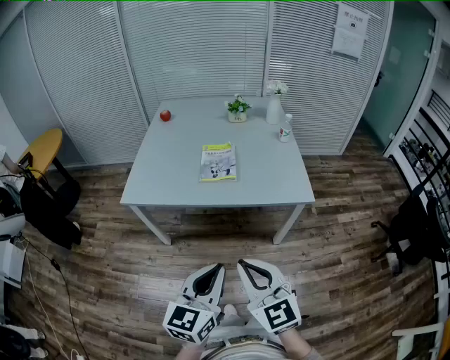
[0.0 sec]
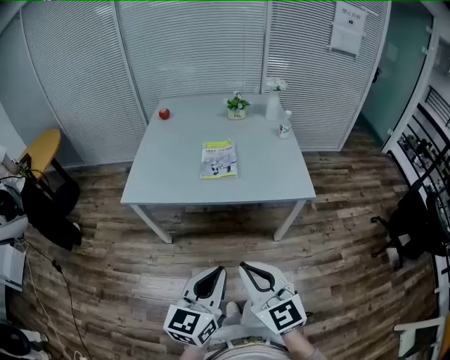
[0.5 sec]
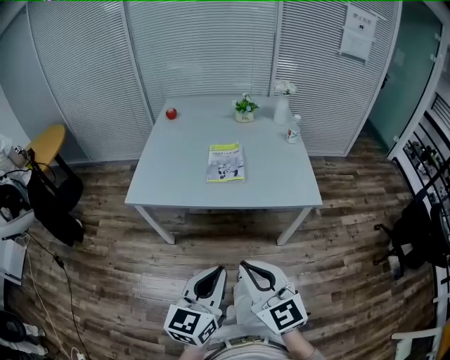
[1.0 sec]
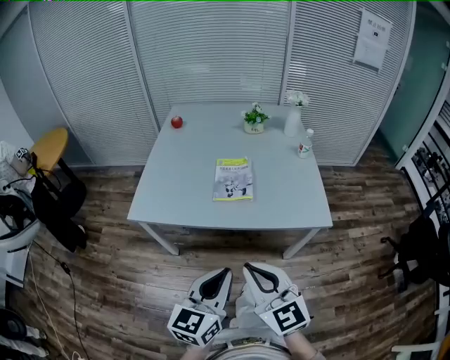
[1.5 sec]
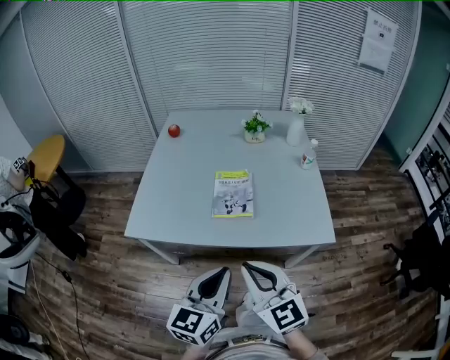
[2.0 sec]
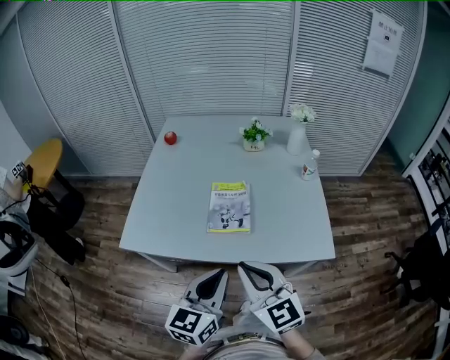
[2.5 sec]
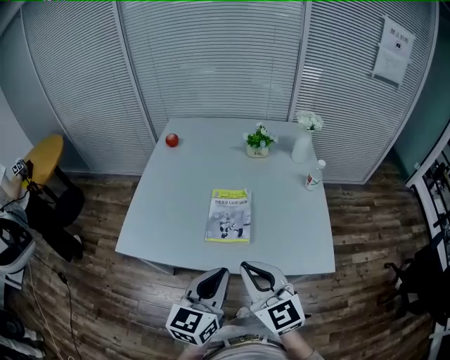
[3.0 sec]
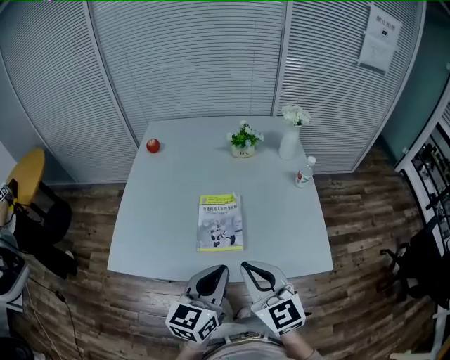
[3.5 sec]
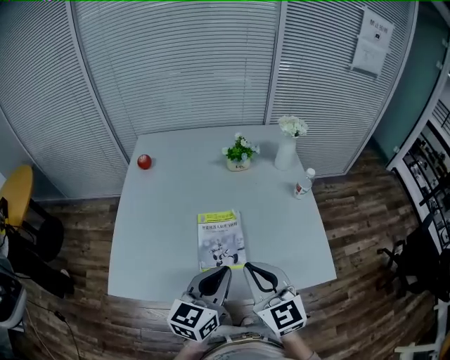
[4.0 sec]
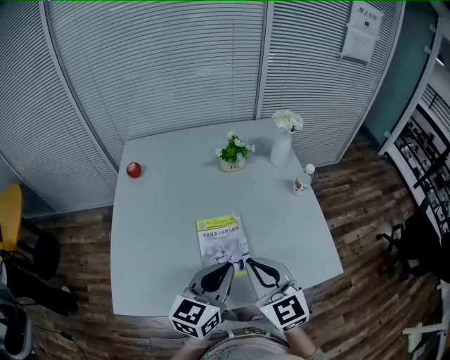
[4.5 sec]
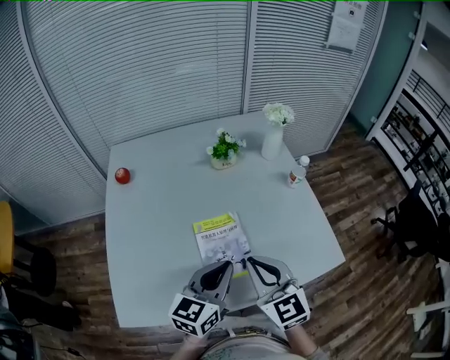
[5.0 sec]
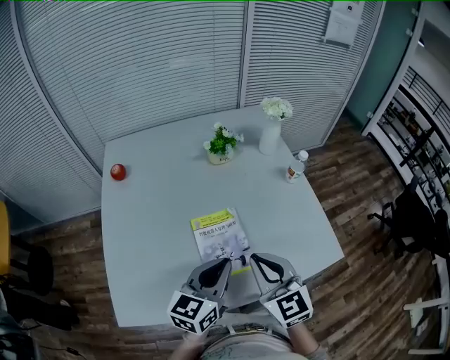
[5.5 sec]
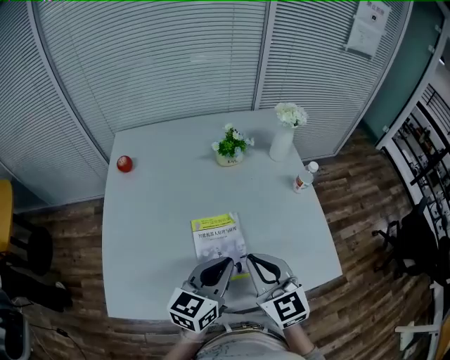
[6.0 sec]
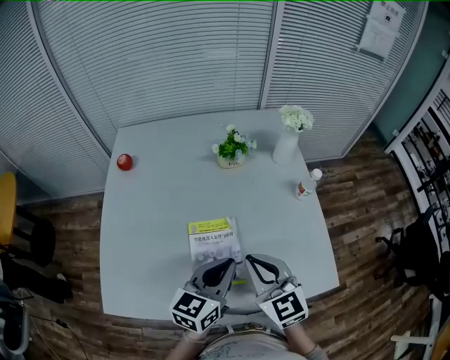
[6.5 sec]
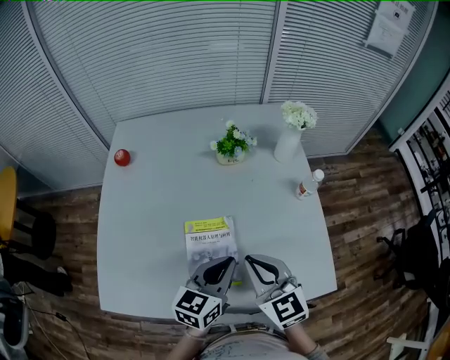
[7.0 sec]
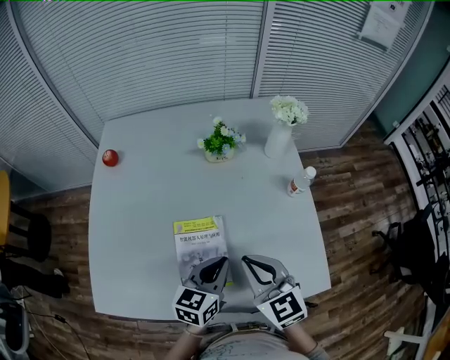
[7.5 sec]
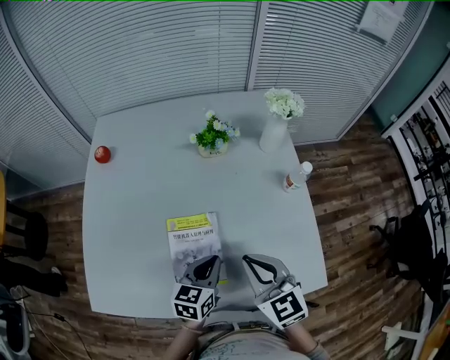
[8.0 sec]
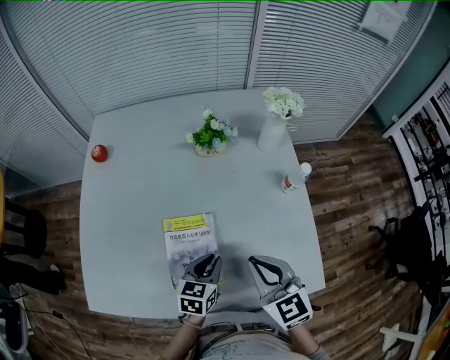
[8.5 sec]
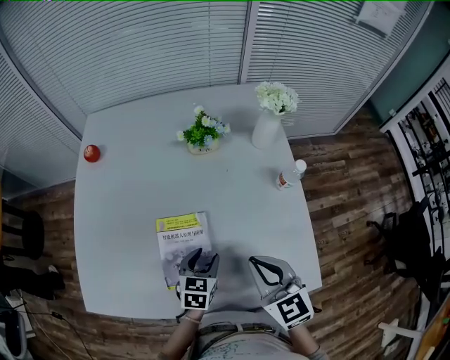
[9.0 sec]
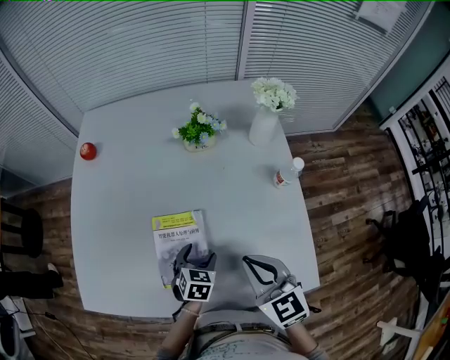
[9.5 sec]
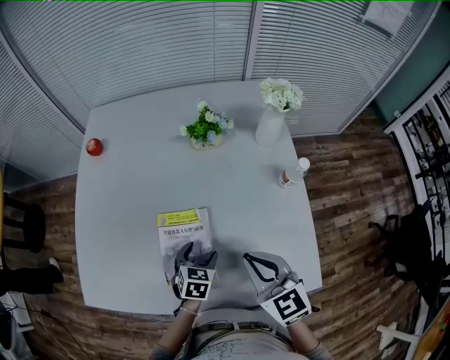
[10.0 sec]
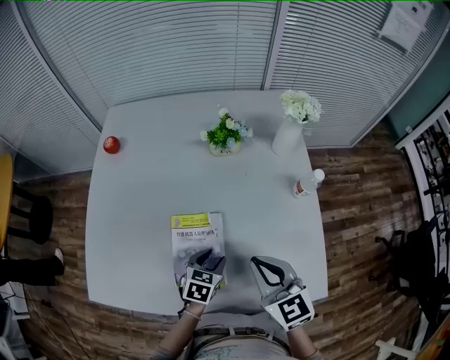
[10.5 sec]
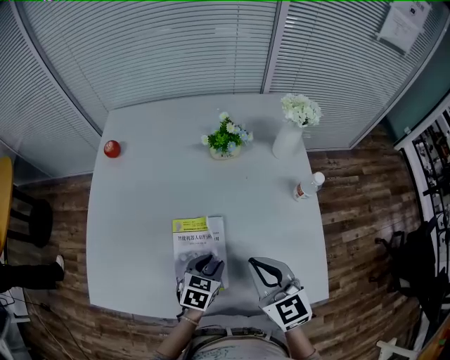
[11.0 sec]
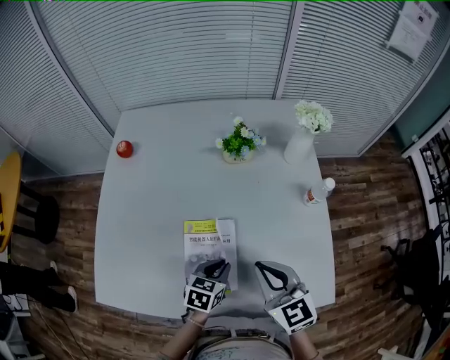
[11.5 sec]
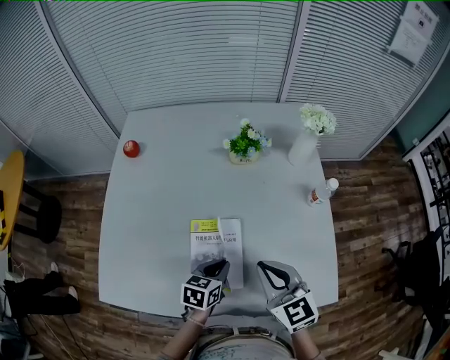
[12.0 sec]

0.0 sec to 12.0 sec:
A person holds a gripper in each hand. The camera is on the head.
0.0 sec to 2.0 sec: The grippers both shift forward by some 20 cm.
2.0 sec to 4.0 sec: Both grippers move forward, approximately 25 cm.
4.0 sec to 6.0 sec: The two grippers go roughly 10 cm forward.
6.0 sec to 8.0 sec: The right gripper shifts roughly 10 cm to the right and forward. Meanwhile the left gripper is displaced downward, forward and to the right by approximately 15 cm.
8.0 sec to 10.0 sec: The left gripper moves downward, roughly 10 cm, swivels roughly 30 degrees, and opens up.
10.0 sec to 12.0 sec: The left gripper is displaced upward by roughly 5 cm, changes its angle by about 20 degrees, and closes up; the right gripper moves to the left, roughly 5 cm.

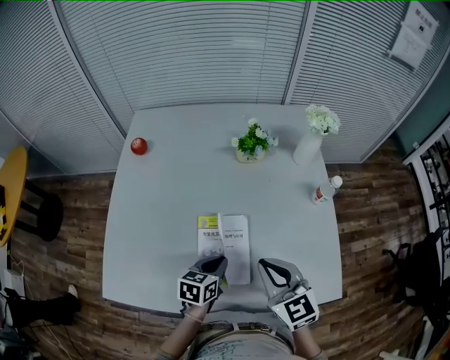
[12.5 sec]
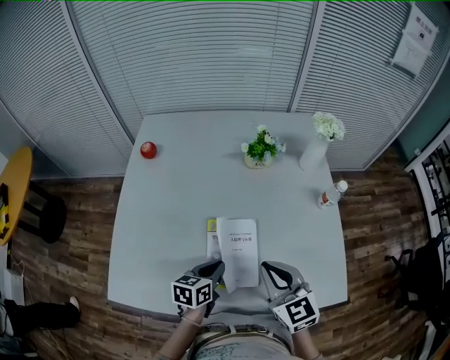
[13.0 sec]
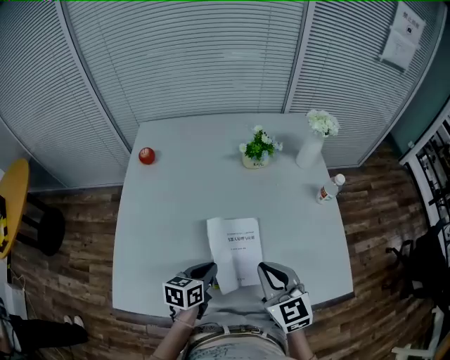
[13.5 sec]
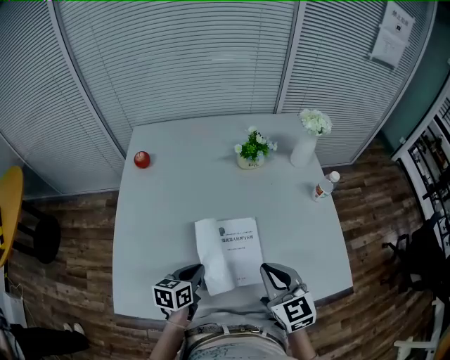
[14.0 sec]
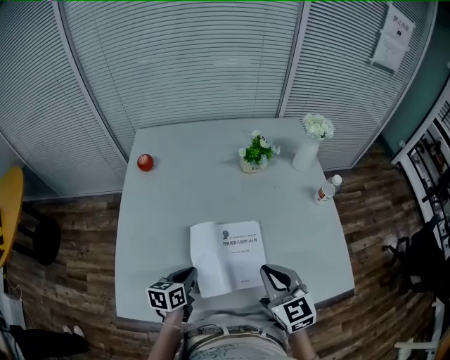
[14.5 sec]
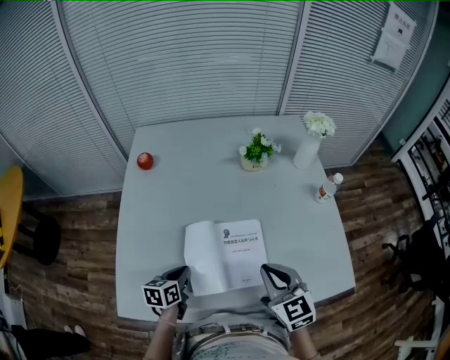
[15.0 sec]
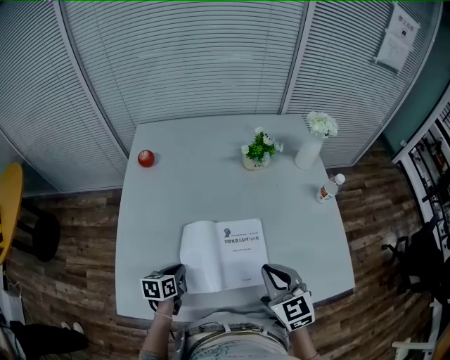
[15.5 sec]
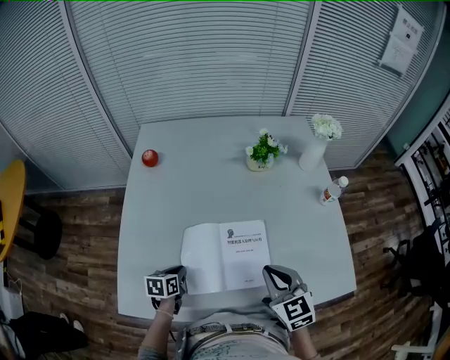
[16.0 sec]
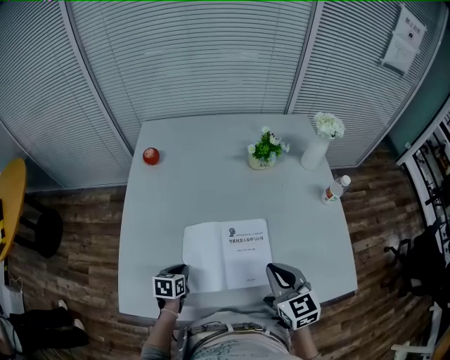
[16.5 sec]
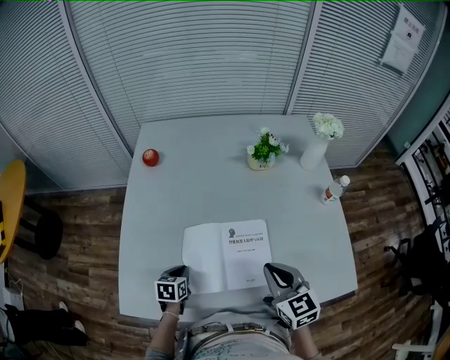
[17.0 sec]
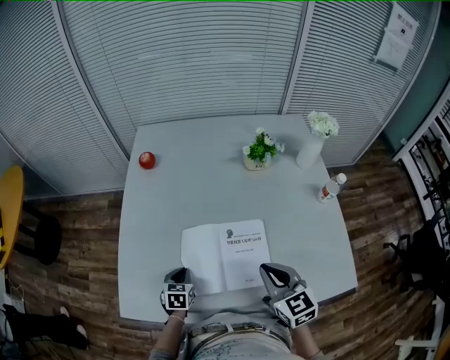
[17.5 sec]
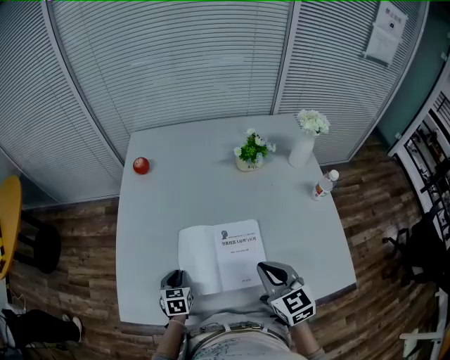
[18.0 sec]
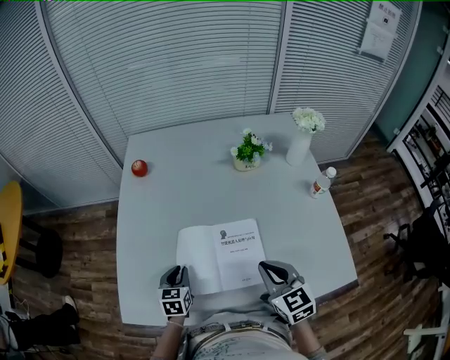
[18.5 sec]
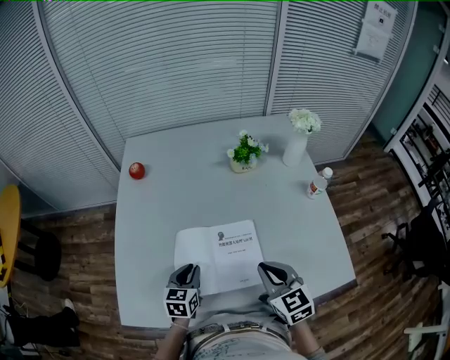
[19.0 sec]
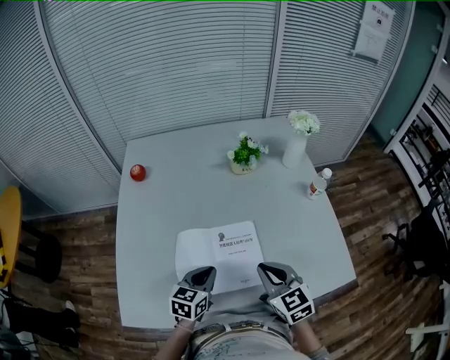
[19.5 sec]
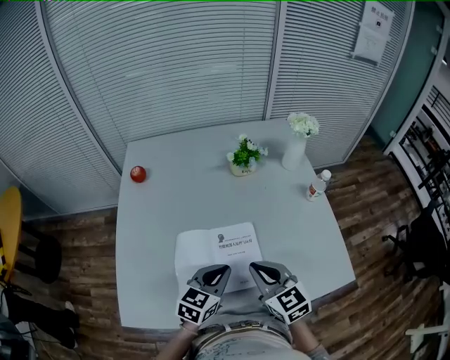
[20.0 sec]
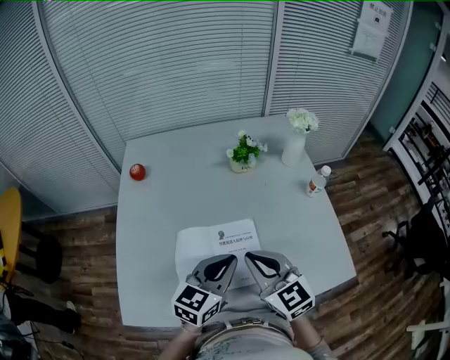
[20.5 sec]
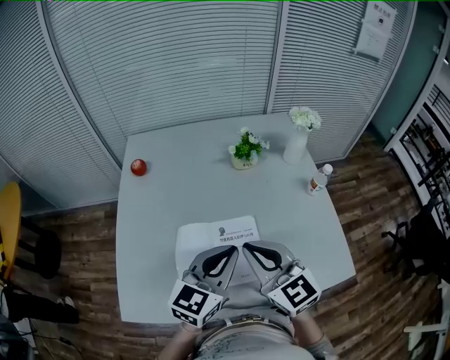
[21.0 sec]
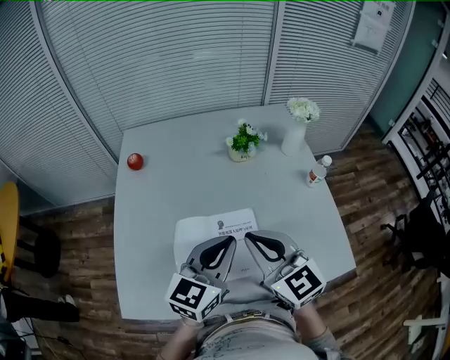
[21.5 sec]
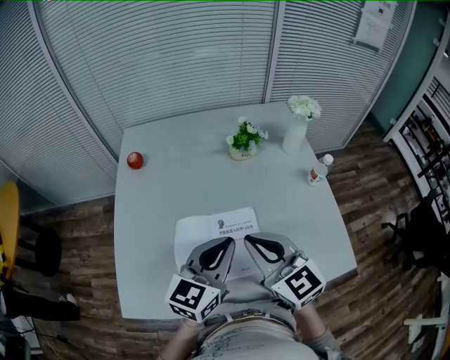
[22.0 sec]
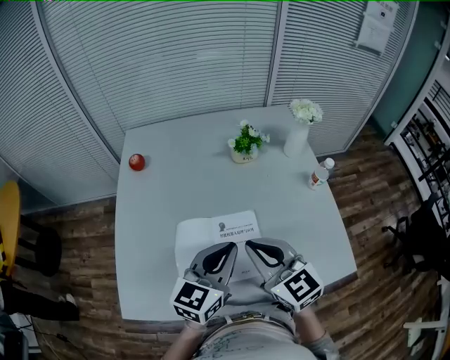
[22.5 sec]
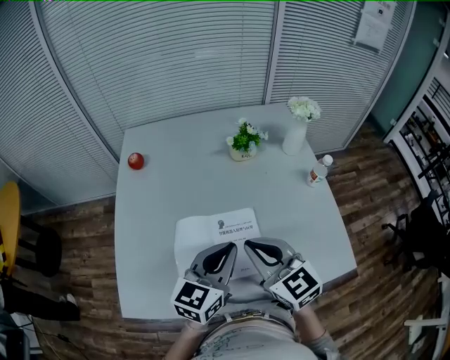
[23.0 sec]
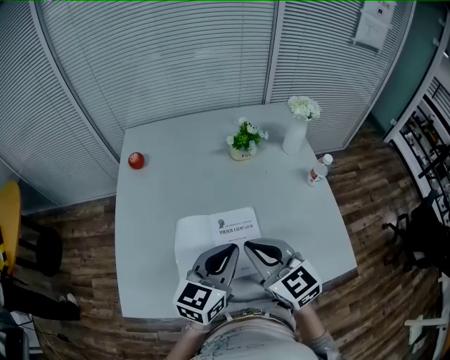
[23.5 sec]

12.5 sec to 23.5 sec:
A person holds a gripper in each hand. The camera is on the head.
12.5 sec to 14.5 sec: The left gripper is displaced to the left by roughly 15 cm. The right gripper shifts approximately 5 cm to the left.
14.5 sec to 16.0 sec: The left gripper travels downward and to the left by approximately 10 cm.
16.0 sec to 18.0 sec: The left gripper rotates approximately 30 degrees.
18.0 sec to 20.0 sec: The left gripper goes some 25 cm to the right and upward, and rotates roughly 40 degrees.
20.0 sec to 21.5 sec: Both grippers move upward, roughly 10 cm.
21.5 sec to 23.5 sec: There are only small adjustments of the grippers.

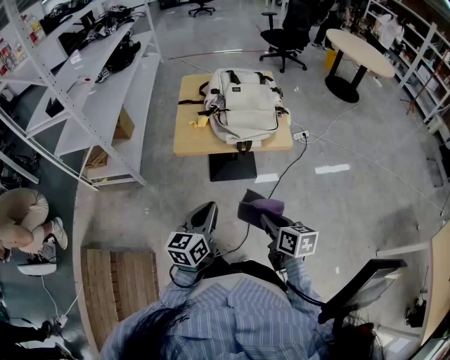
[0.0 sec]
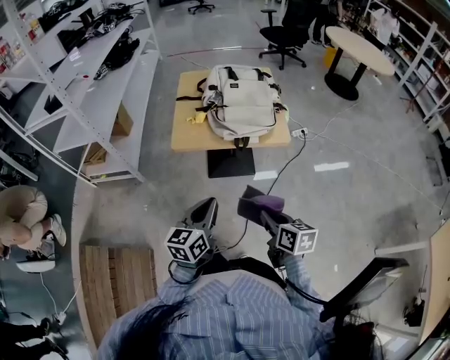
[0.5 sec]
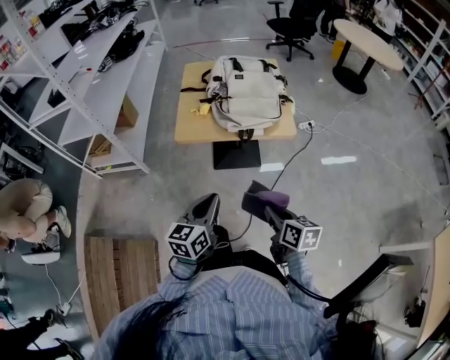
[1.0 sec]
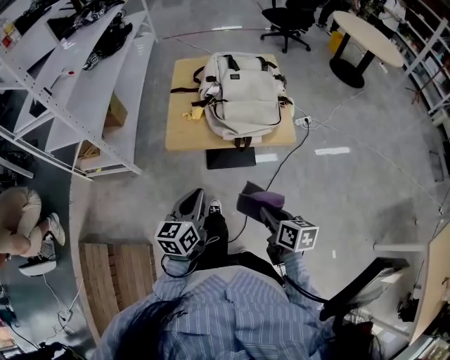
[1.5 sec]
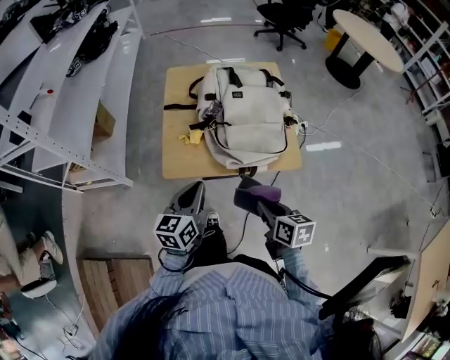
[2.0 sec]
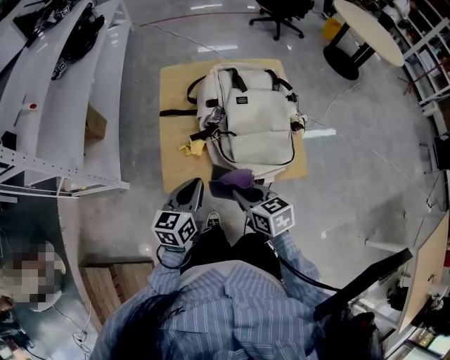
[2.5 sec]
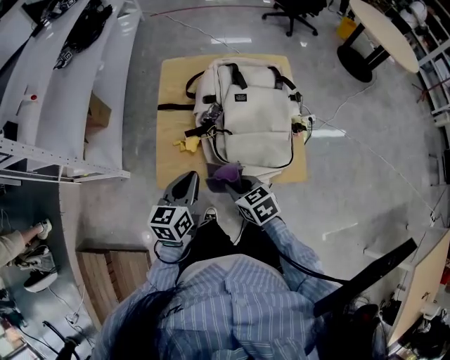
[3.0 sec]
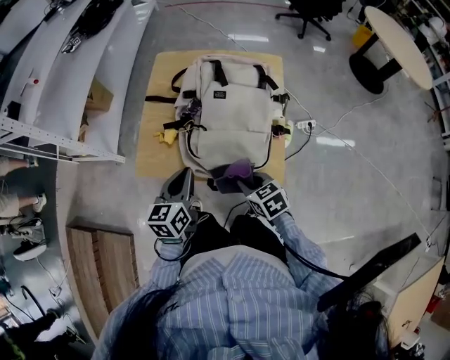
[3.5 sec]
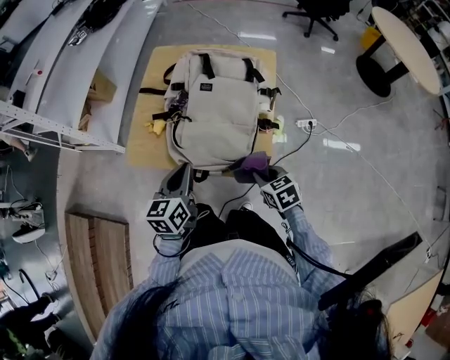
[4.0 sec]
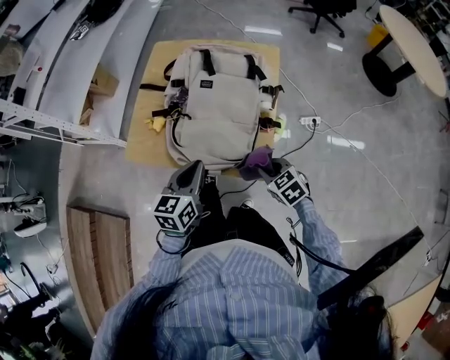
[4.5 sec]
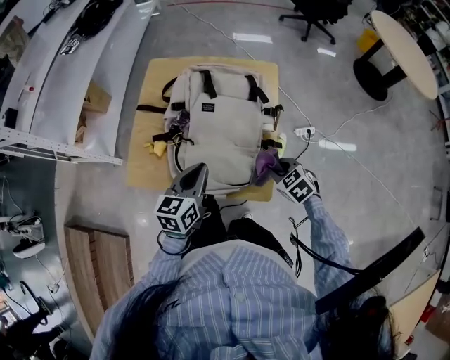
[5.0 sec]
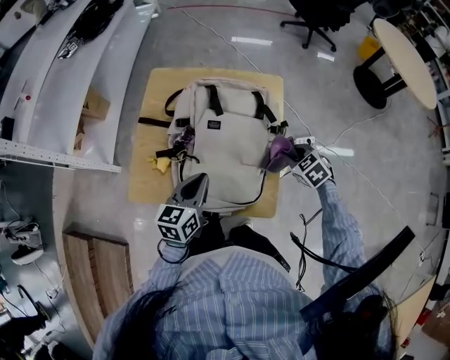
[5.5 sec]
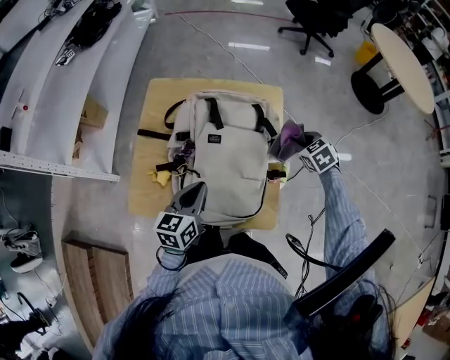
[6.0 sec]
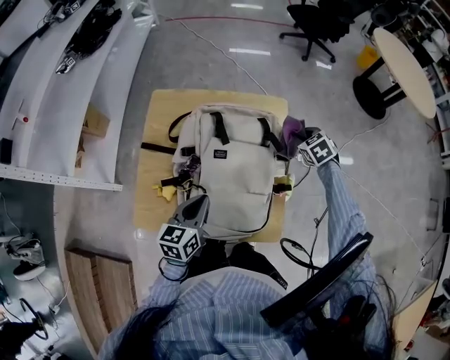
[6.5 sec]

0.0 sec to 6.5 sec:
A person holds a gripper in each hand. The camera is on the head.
0.0 sec to 2.0 sec: The grippers both shift forward by some 25 cm.
2.0 sec to 4.5 sec: The right gripper travels to the right and forward by approximately 25 cm, and rolls counterclockwise, seen from behind, by roughly 50 degrees. Meanwhile the left gripper heads to the right, covering some 20 cm.
4.5 sec to 6.5 sec: The left gripper goes roughly 15 cm forward, while the right gripper moves forward, approximately 35 cm, and swivels approximately 20 degrees.
